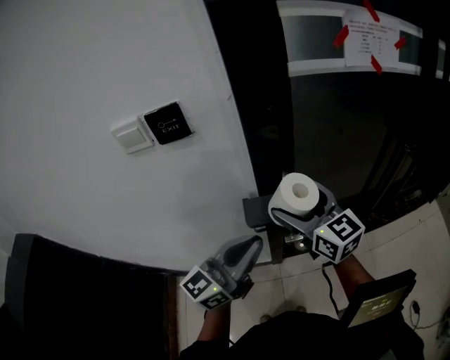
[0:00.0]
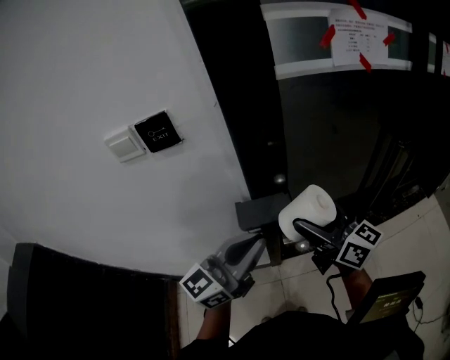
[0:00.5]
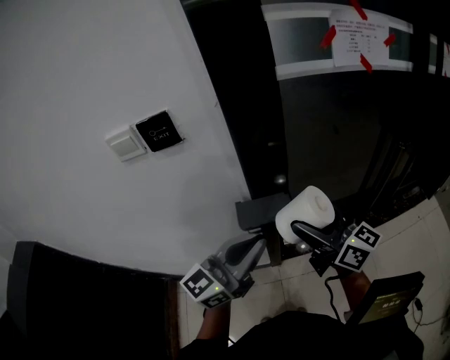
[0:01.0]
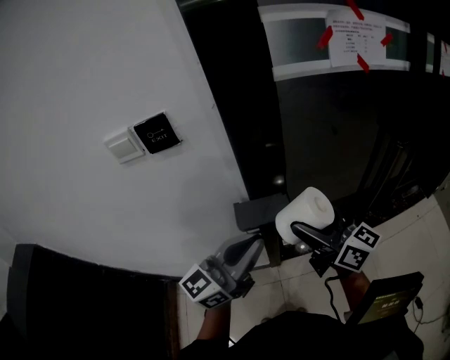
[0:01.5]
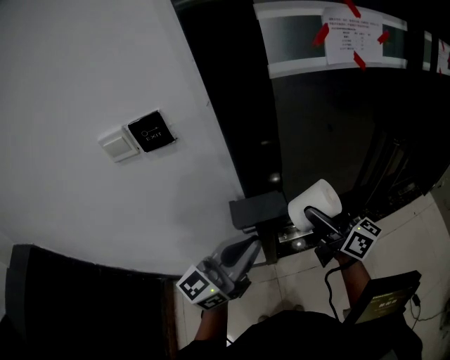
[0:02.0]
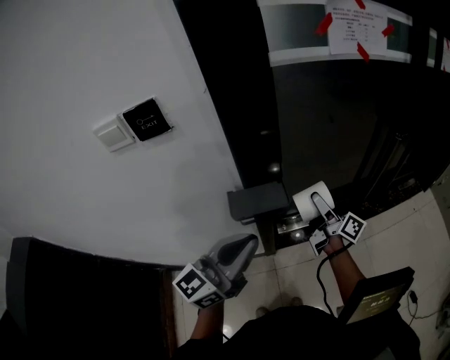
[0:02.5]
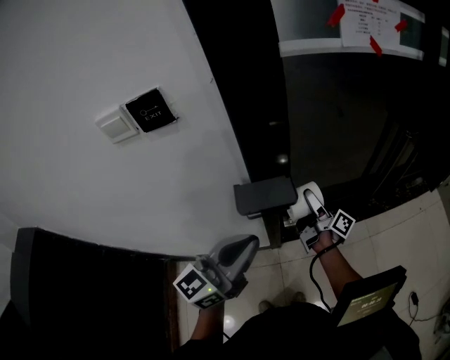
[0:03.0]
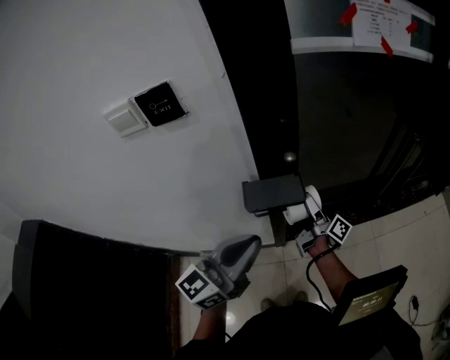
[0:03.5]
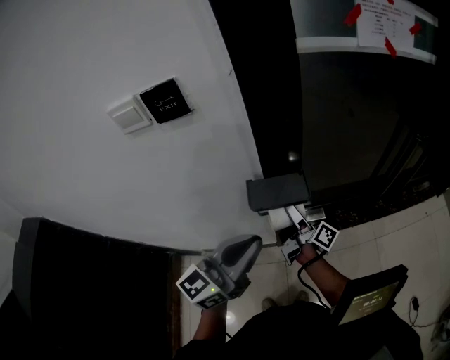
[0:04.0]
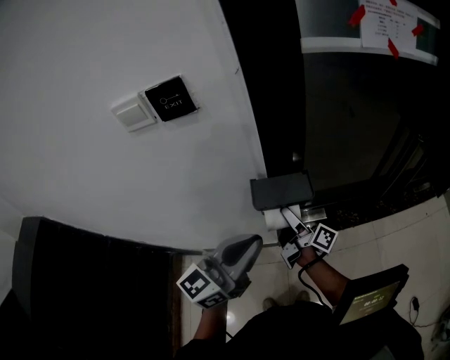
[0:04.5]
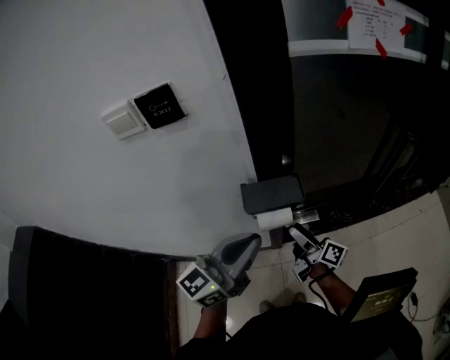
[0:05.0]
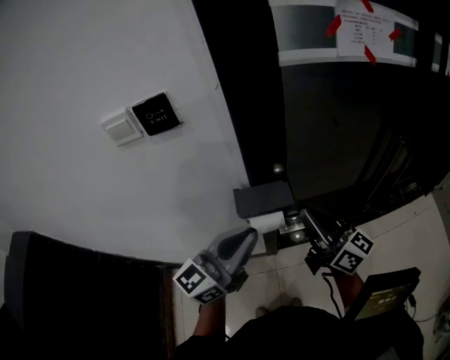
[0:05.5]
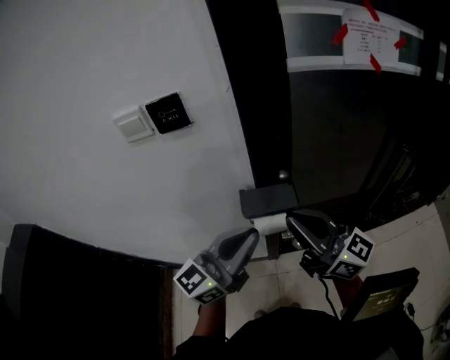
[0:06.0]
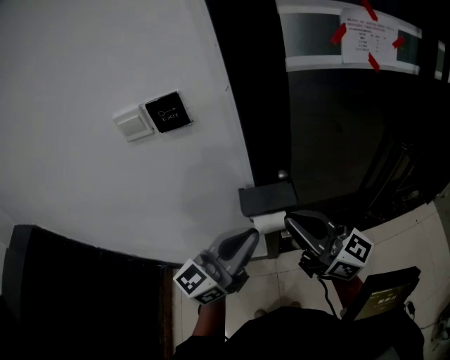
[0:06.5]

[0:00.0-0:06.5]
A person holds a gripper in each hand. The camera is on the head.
0:00.0 to 0:02.0: The right gripper moves to the right, some 10 cm, and swivels about 30 degrees.
0:02.0 to 0:04.5: The left gripper changes place by roughly 5 cm. Meanwhile the right gripper heads downward and to the left, covering roughly 25 cm, and rotates around the line of its fingers by roughly 50 degrees, clockwise from behind.
0:04.5 to 0:06.5: The right gripper is displaced upward and backward by about 25 cm, twists approximately 60 degrees counterclockwise, seen from behind, and closes its fingers.

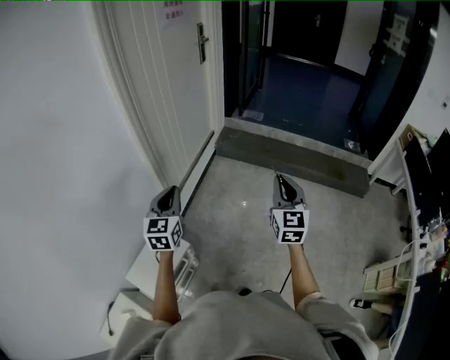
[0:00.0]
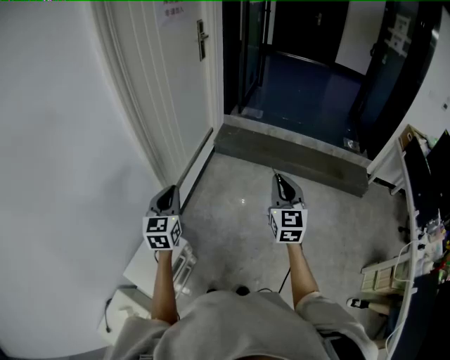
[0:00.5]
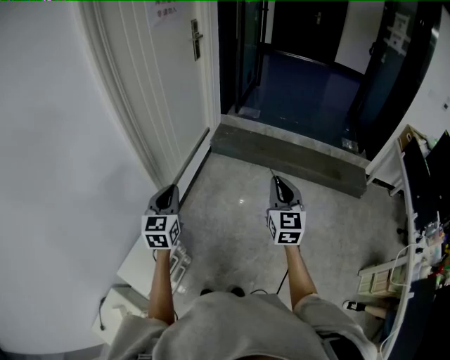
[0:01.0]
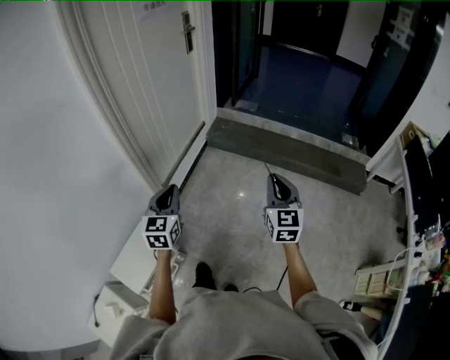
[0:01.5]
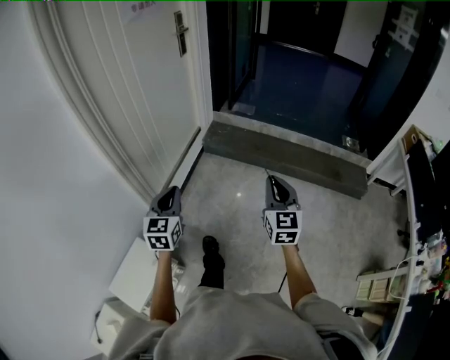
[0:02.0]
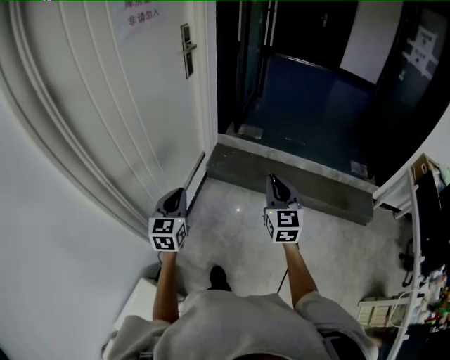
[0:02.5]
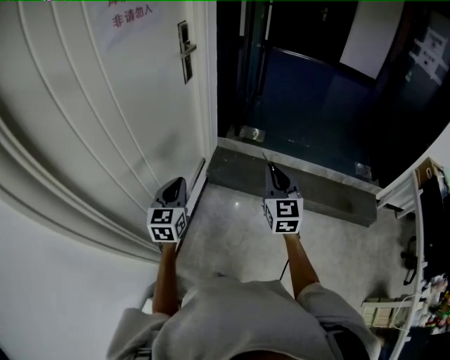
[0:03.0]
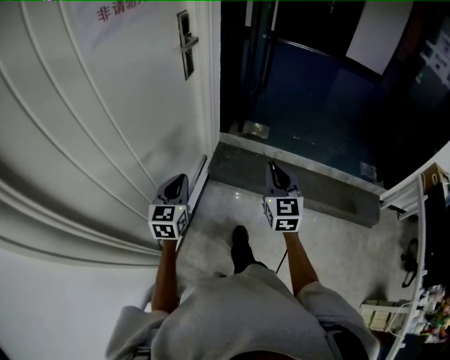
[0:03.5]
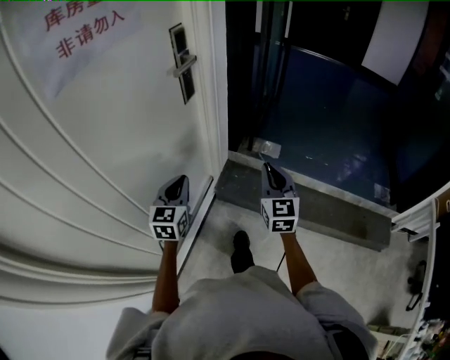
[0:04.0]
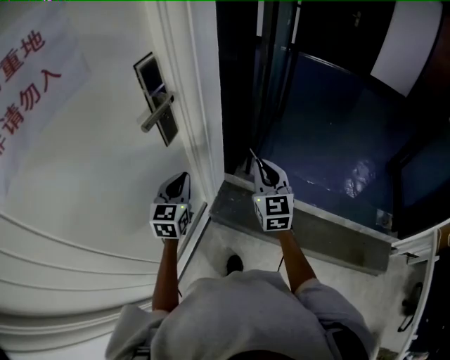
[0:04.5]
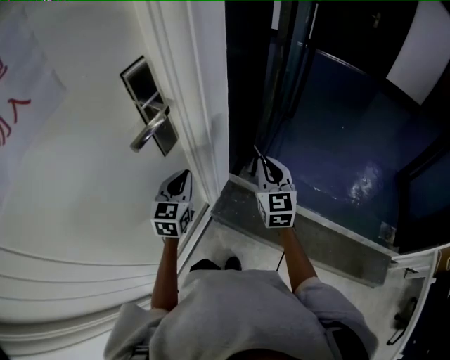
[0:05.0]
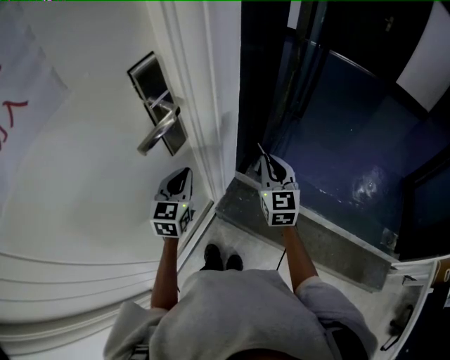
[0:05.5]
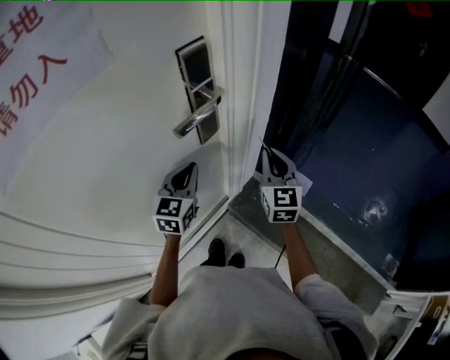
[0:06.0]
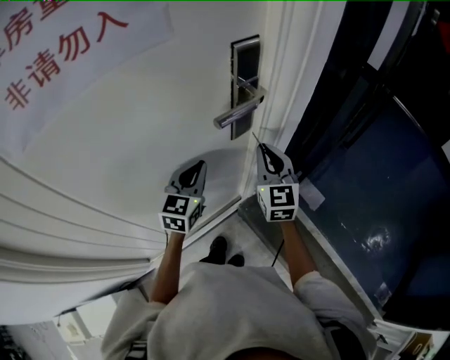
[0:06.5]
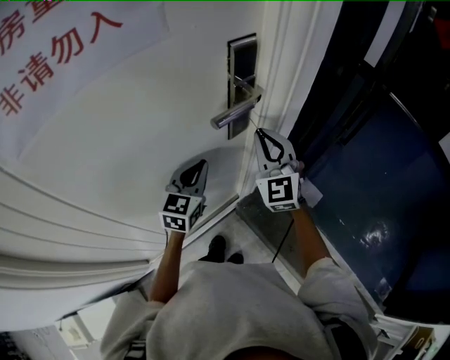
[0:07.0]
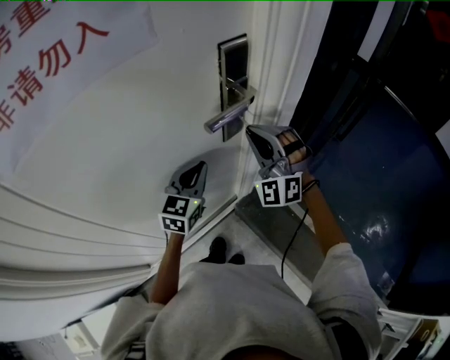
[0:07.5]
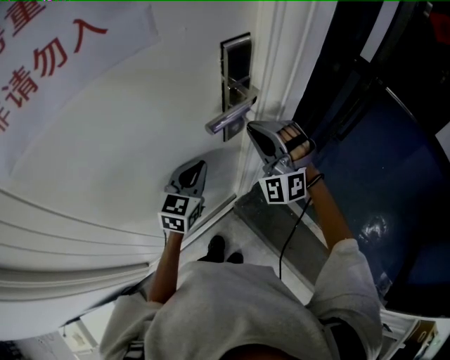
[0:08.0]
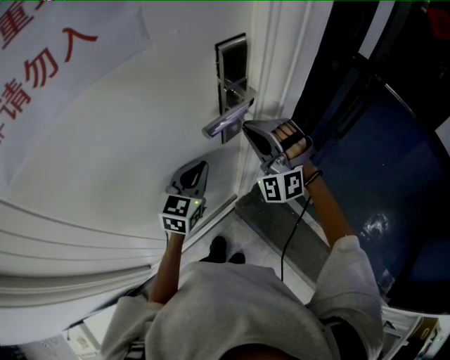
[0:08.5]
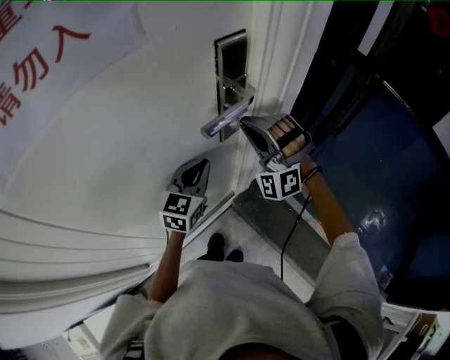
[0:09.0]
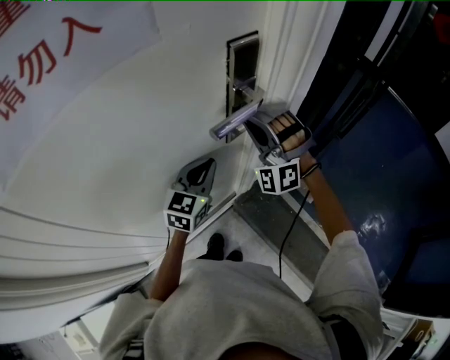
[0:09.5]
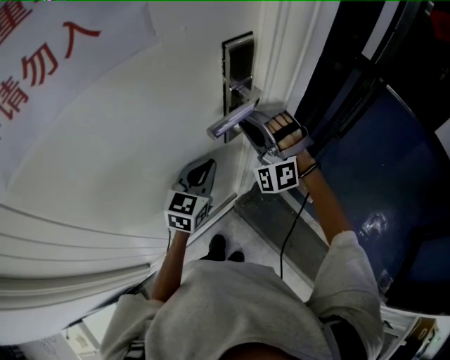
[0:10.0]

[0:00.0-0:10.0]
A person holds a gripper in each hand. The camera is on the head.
0:00.0 to 0:02.0: The two grippers go roughly 15 cm forward and to the right.
0:02.0 to 0:04.0: The two grippers travel together, forward, about 60 cm.
0:04.0 to 0:06.0: The two grippers go roughly 30 cm forward.
0:06.0 to 0:08.0: The right gripper moves to the left and upward, some 15 cm, and twists some 70 degrees counterclockwise, seen from behind.
0:08.0 to 0:10.0: The grippers stay close to where they were, moving slightly.

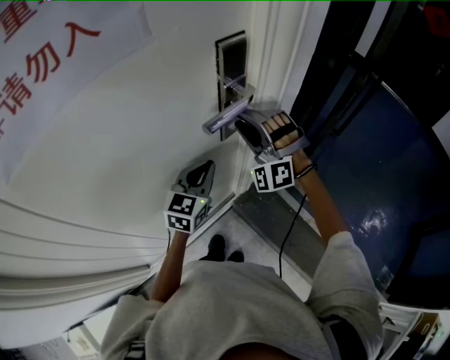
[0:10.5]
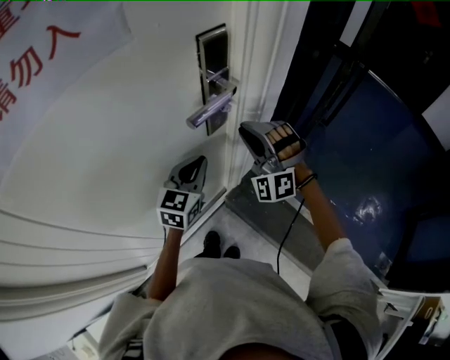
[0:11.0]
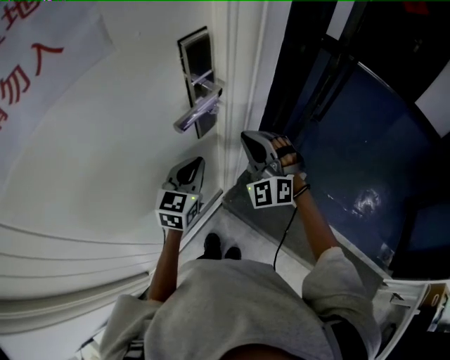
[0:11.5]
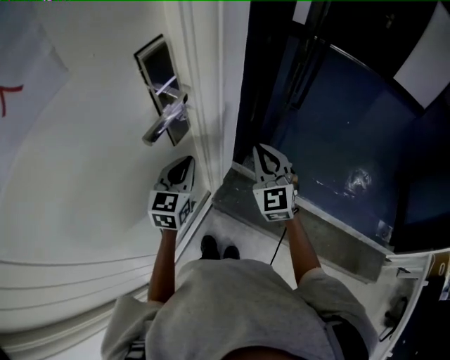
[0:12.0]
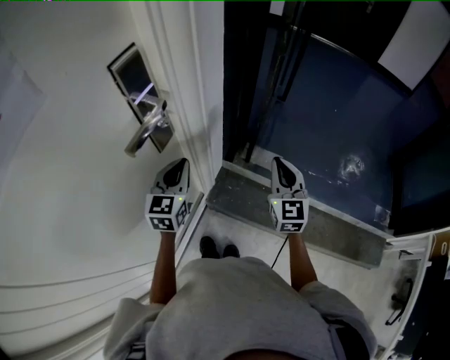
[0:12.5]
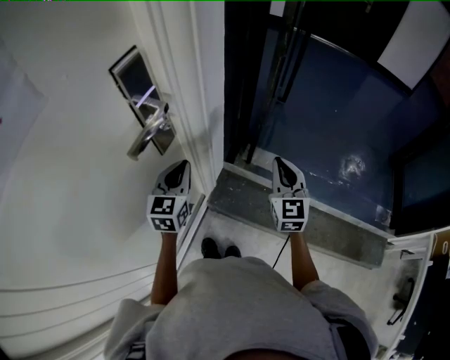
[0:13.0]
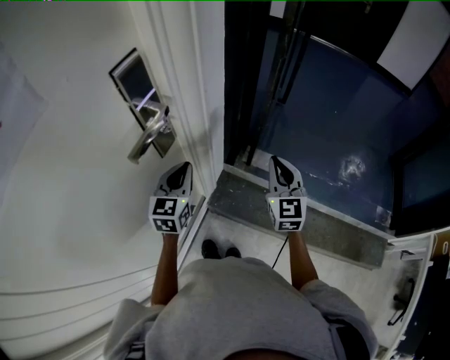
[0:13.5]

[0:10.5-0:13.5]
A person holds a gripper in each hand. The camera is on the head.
0:10.5 to 0:12.0: The left gripper goes some 5 cm to the right, while the right gripper is displaced to the right by some 20 cm, rotates around the line of its fingers by roughly 60 degrees, clockwise from behind, and closes.
0:12.0 to 0:13.5: The right gripper is displaced to the right by approximately 10 cm.

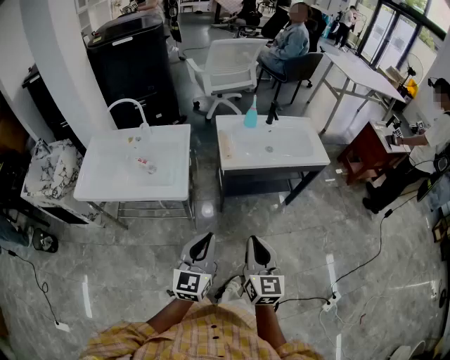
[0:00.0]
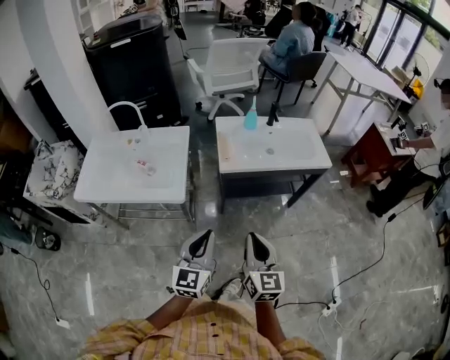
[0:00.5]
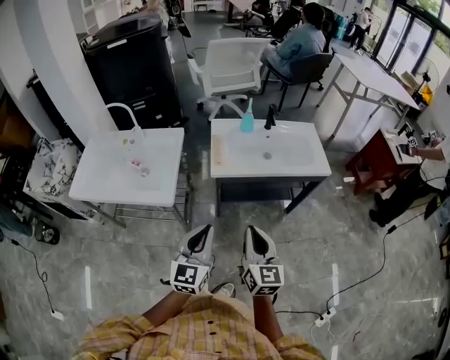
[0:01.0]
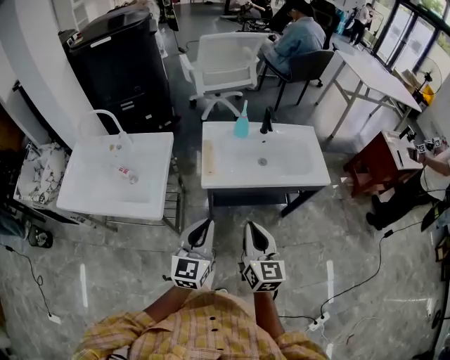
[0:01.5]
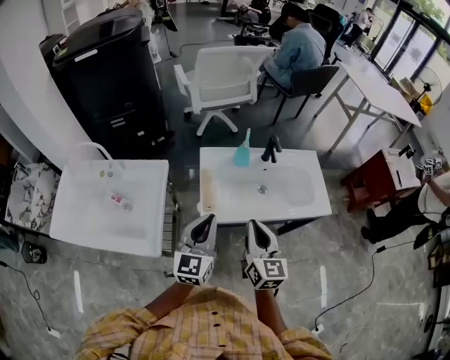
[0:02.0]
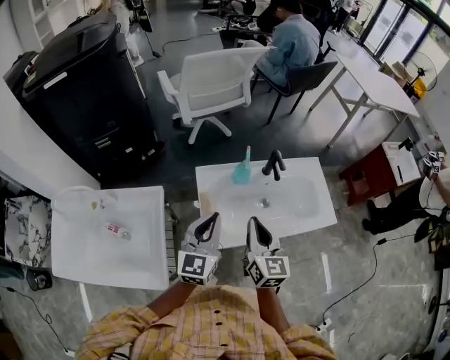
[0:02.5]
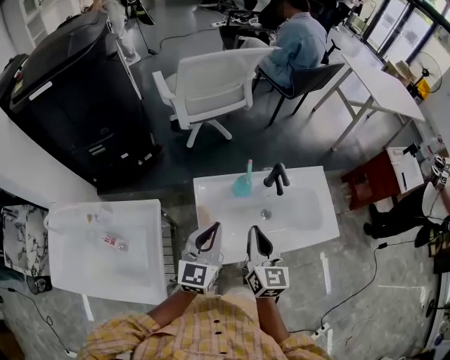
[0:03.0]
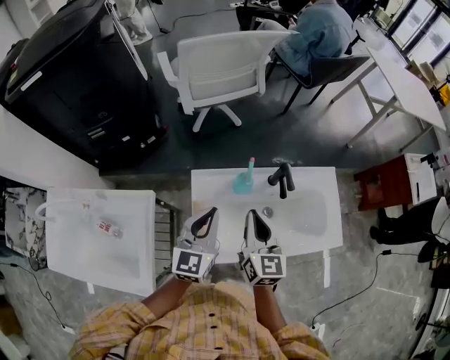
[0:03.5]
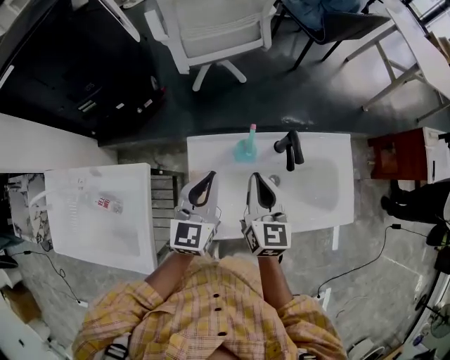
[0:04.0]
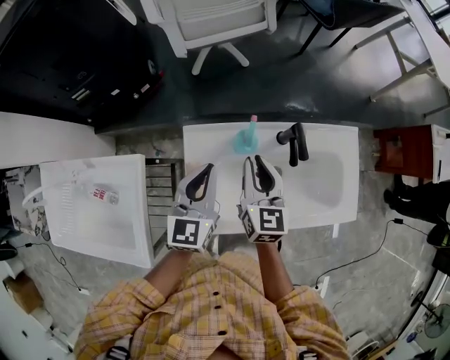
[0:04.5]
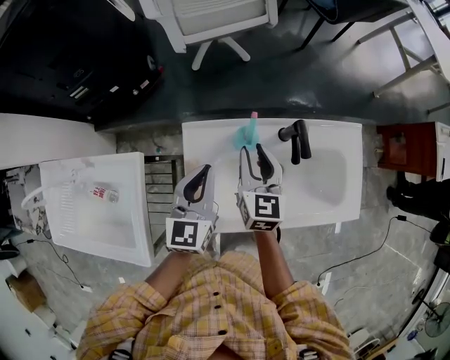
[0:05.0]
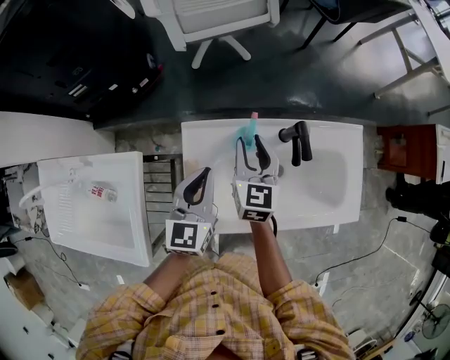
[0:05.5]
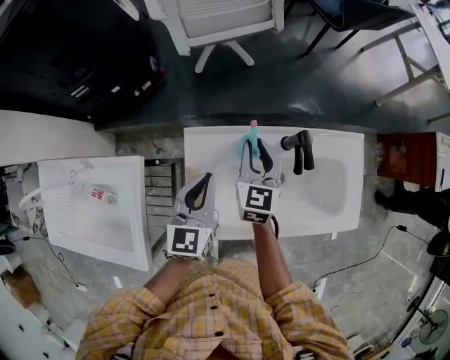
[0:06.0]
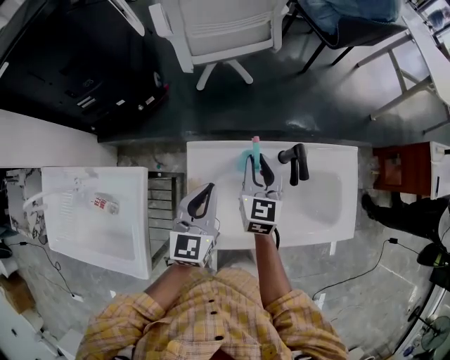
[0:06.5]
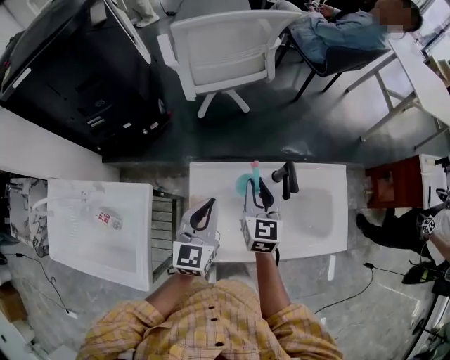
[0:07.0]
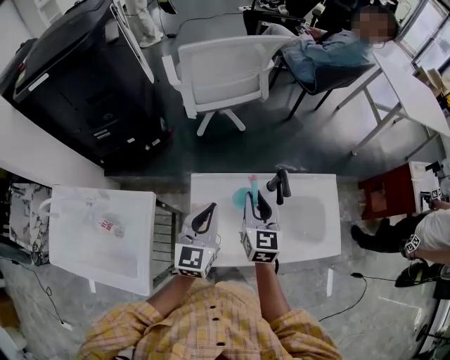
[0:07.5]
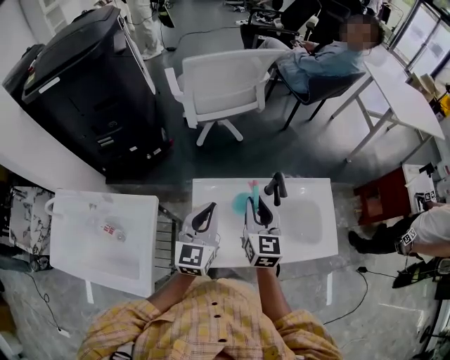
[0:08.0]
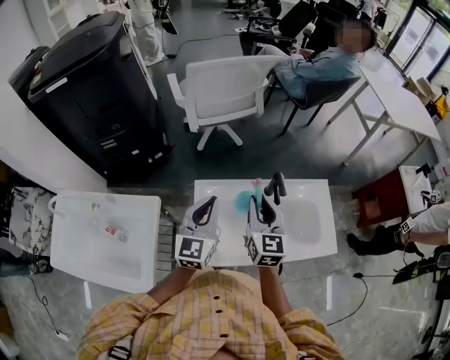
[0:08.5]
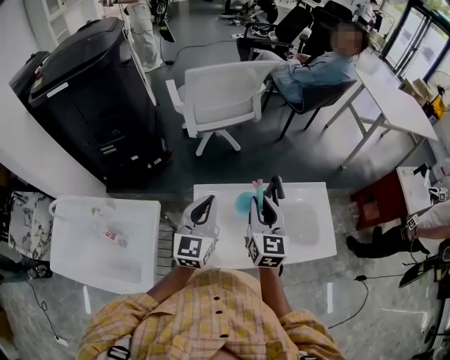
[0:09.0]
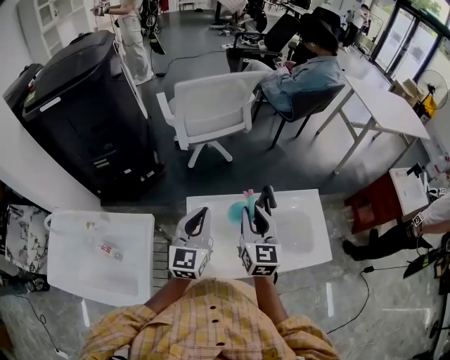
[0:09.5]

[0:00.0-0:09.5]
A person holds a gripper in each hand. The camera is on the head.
0:00.0 to 0:02.0: The grippers both shift forward by some 40 cm.
0:02.0 to 0:04.0: Both grippers move forward, approximately 30 cm.
0:04.0 to 0:05.5: The right gripper goes about 10 cm forward and downward, and opens its fingers.
0:05.5 to 0:07.5: The right gripper travels upward and backward by some 10 cm. The left gripper travels upward by about 10 cm.
0:07.5 to 0:09.5: The two grippers go approximately 5 cm upward.
